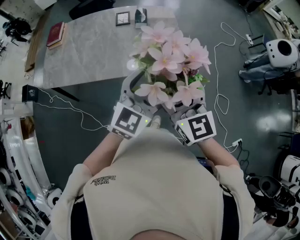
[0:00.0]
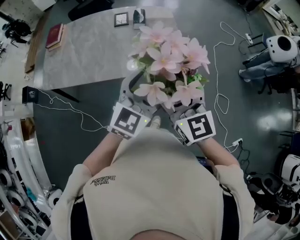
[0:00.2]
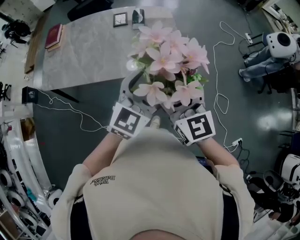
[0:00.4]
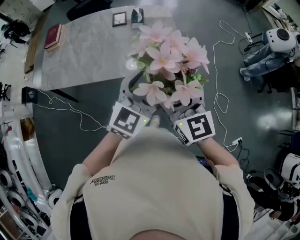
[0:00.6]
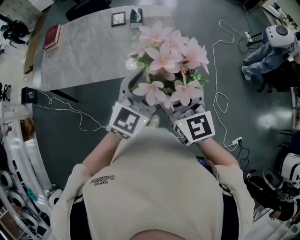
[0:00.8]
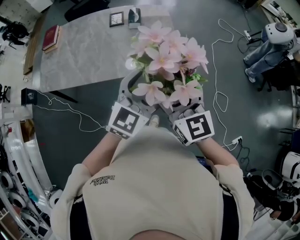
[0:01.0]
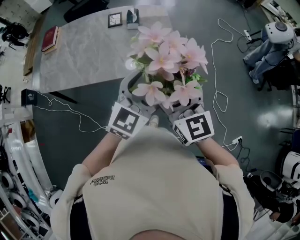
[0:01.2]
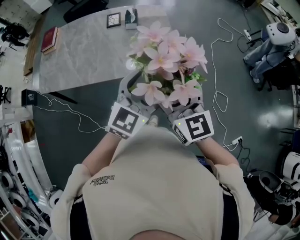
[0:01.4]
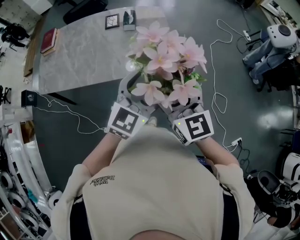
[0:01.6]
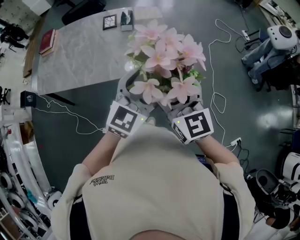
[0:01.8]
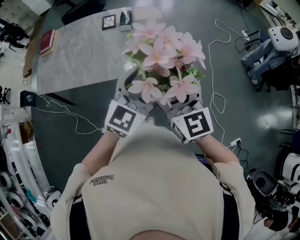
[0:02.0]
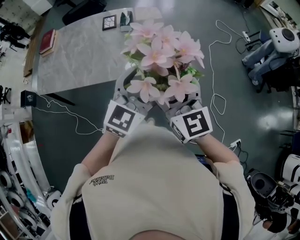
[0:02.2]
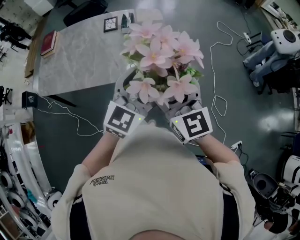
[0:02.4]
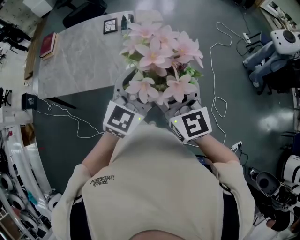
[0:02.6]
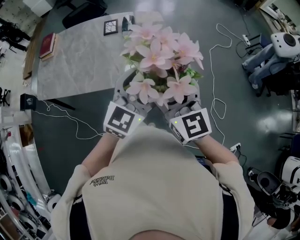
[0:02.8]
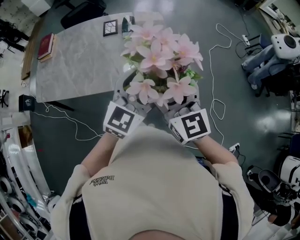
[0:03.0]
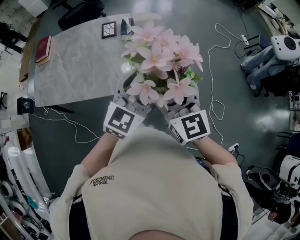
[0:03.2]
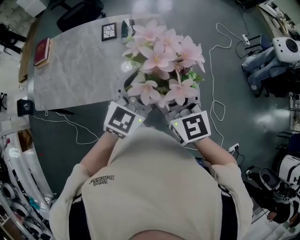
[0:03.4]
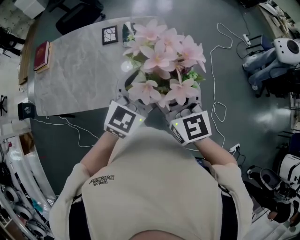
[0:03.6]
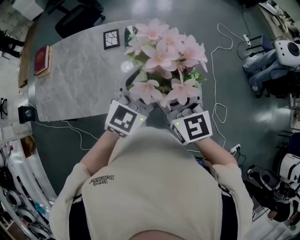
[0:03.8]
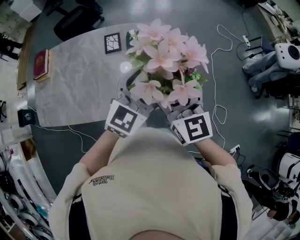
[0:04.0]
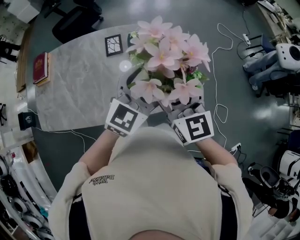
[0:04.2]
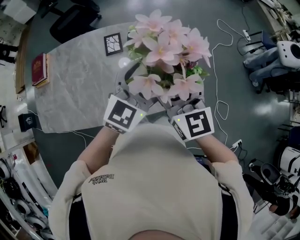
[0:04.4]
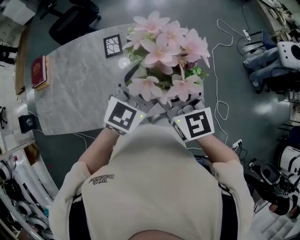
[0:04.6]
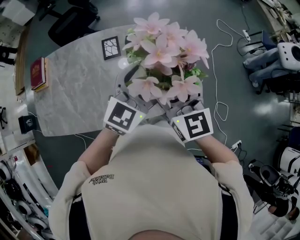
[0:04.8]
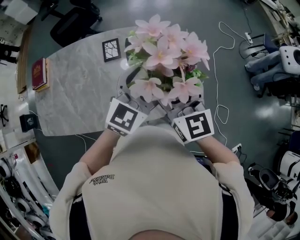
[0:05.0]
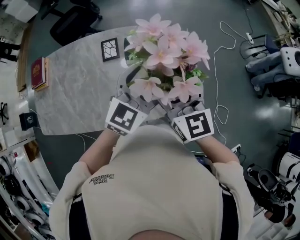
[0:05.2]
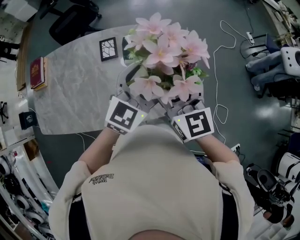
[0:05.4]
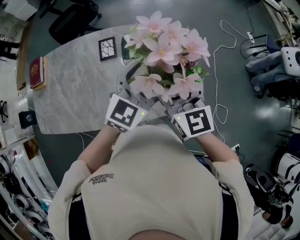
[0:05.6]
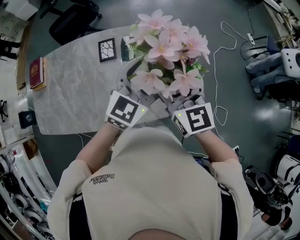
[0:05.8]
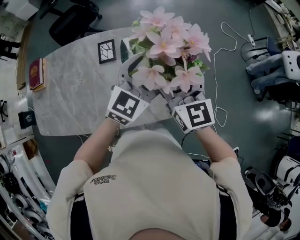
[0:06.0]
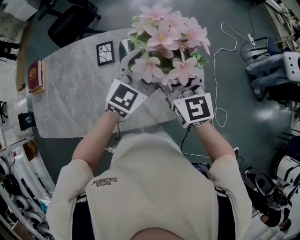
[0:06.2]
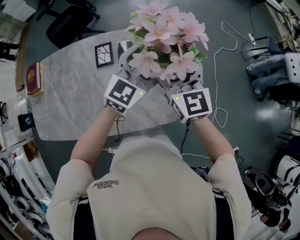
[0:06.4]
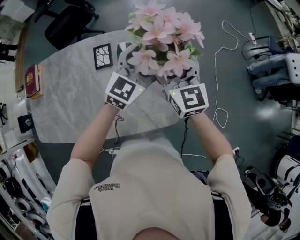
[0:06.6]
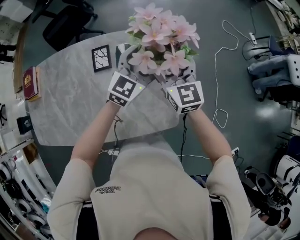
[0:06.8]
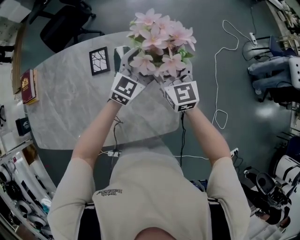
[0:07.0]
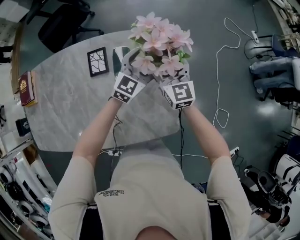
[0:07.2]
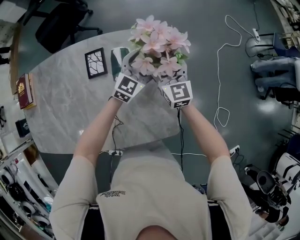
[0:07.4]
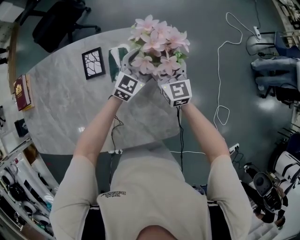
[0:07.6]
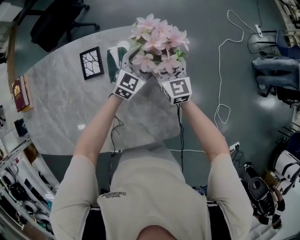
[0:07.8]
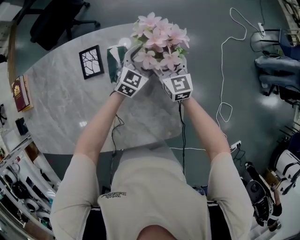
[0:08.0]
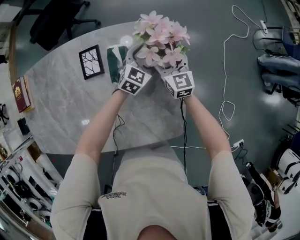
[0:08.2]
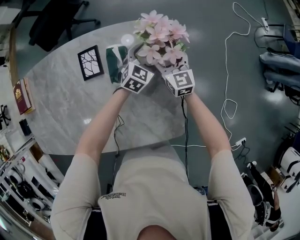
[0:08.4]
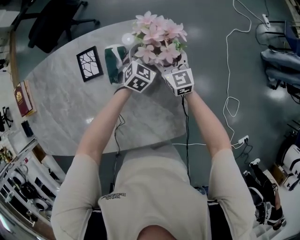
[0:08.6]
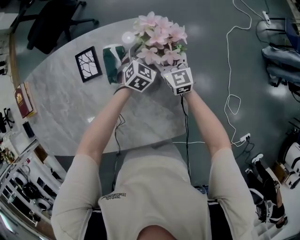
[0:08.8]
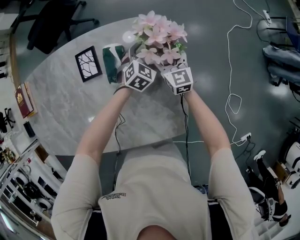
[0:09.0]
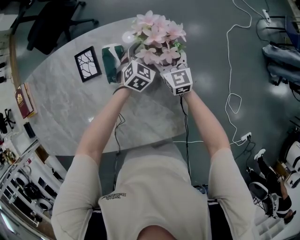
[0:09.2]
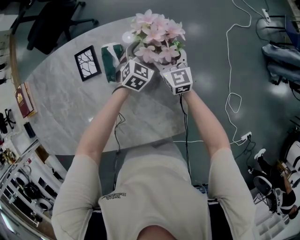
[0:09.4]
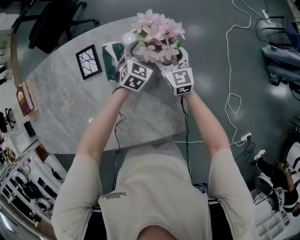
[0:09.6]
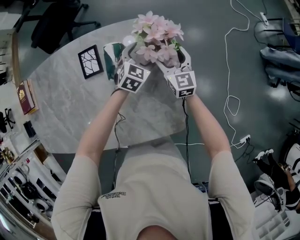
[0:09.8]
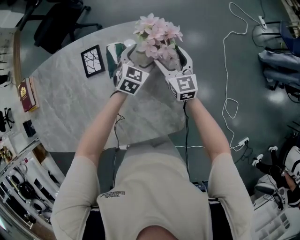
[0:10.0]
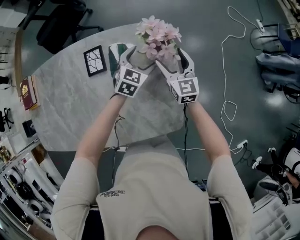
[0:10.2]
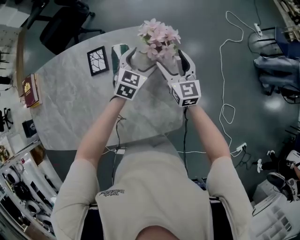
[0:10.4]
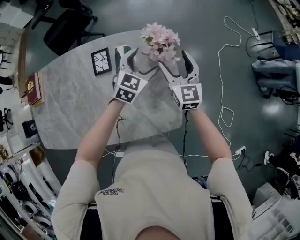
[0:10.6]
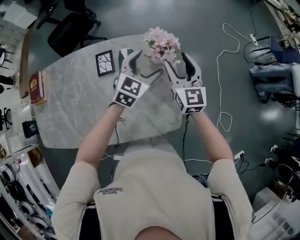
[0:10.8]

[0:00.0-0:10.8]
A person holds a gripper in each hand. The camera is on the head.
0:00.0 to 0:01.6: Both grippers travel together to the right, about 5 cm.
0:01.6 to 0:03.0: Both grippers move forward, some 5 cm.
0:03.0 to 0:04.6: The grippers both shift forward and to the left by about 25 cm.
0:04.6 to 0:06.2: The two grippers go approximately 15 cm forward and to the right.
0:06.2 to 0:07.8: Both grippers travel together downward and forward, about 30 cm.
0:07.8 to 0:09.2: The grippers both shift downward by approximately 10 cm. The left gripper swivels about 30 degrees.
0:09.2 to 0:10.8: Both grippers move upward and backward, approximately 25 cm. The left gripper turns by about 20 degrees.

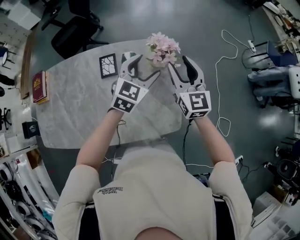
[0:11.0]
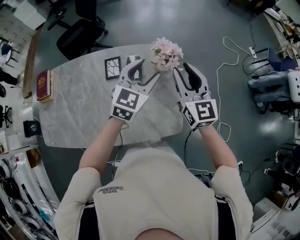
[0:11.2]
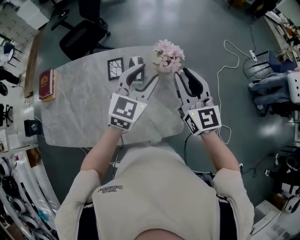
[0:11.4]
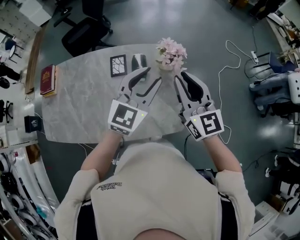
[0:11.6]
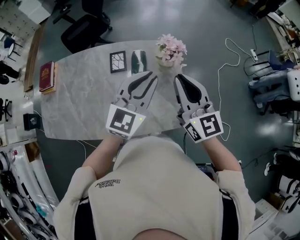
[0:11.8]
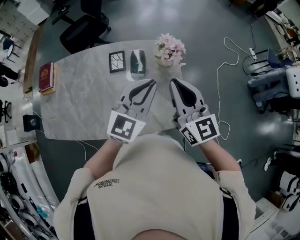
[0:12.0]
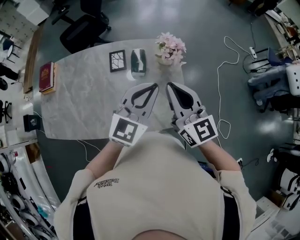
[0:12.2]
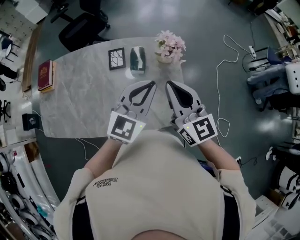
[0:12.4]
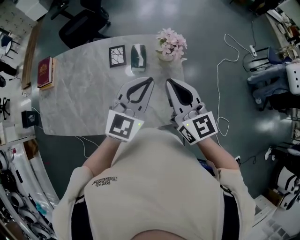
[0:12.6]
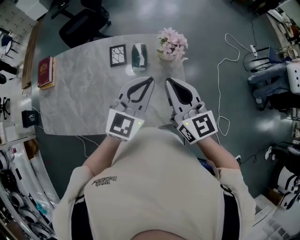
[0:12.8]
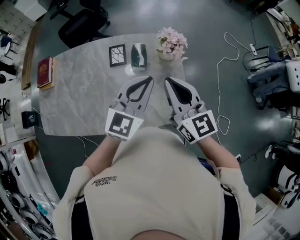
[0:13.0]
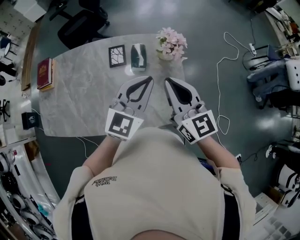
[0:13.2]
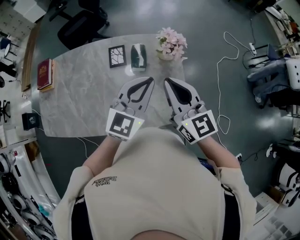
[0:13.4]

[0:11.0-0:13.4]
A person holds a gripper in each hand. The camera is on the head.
0:11.0 to 0:12.2: The left gripper goes approximately 20 cm backward and upward, and closes, while the right gripper travels backward, upward and to the left by some 20 cm, and closes up.
0:12.2 to 0:13.4: There are only small adjustments of the grippers.

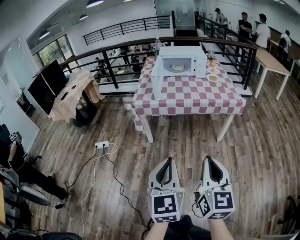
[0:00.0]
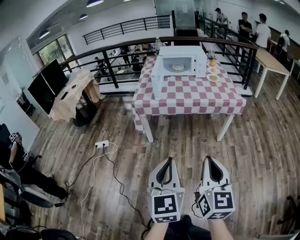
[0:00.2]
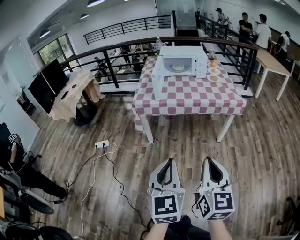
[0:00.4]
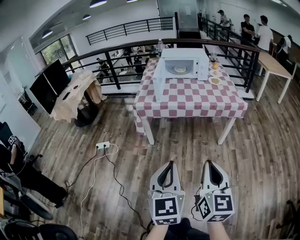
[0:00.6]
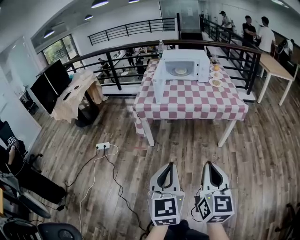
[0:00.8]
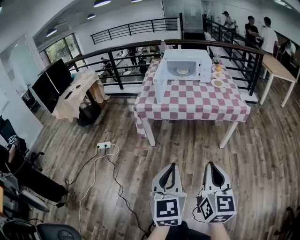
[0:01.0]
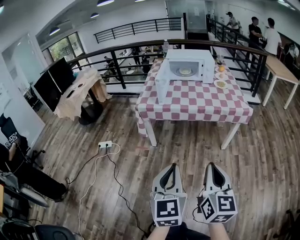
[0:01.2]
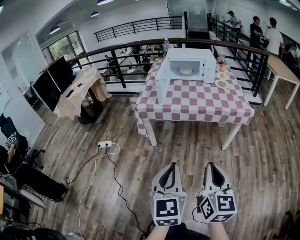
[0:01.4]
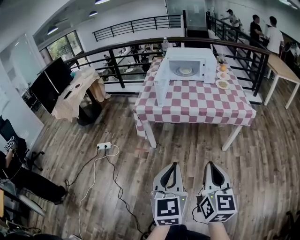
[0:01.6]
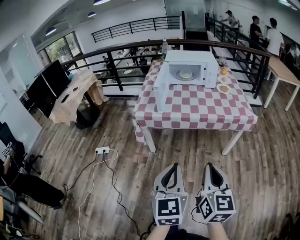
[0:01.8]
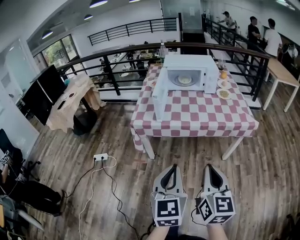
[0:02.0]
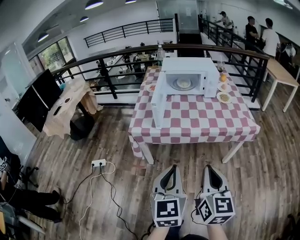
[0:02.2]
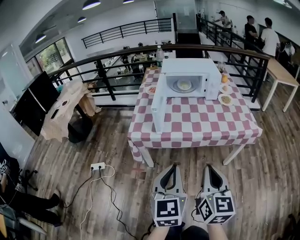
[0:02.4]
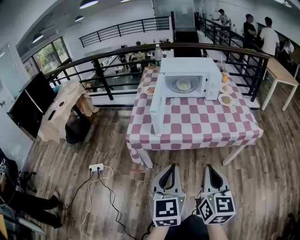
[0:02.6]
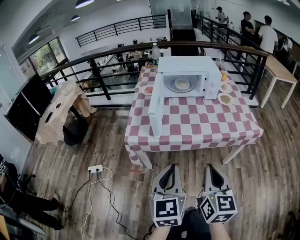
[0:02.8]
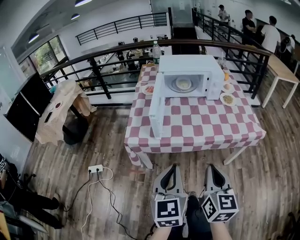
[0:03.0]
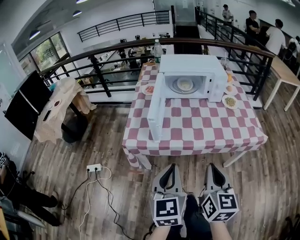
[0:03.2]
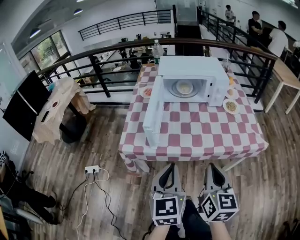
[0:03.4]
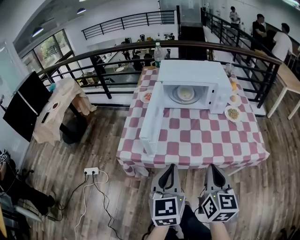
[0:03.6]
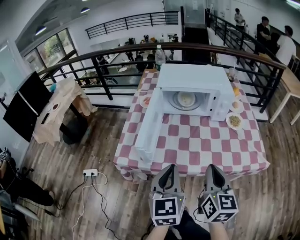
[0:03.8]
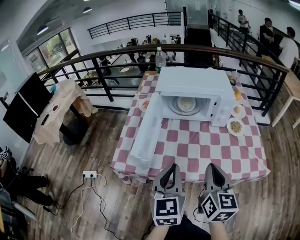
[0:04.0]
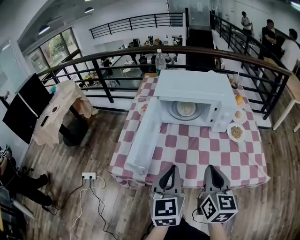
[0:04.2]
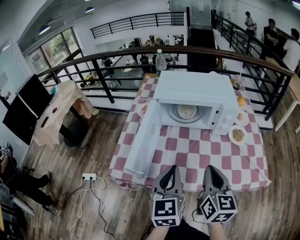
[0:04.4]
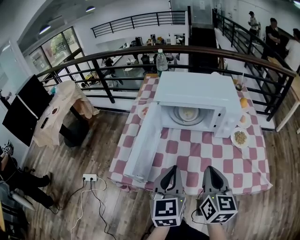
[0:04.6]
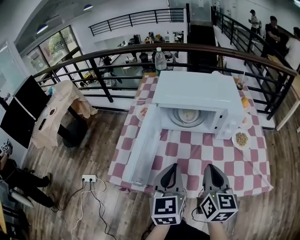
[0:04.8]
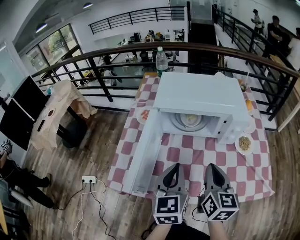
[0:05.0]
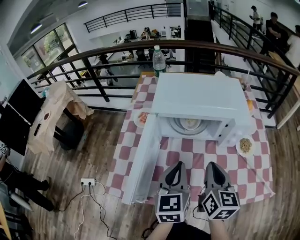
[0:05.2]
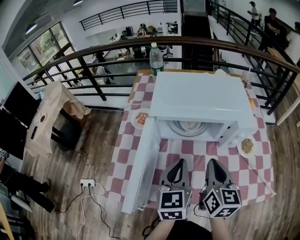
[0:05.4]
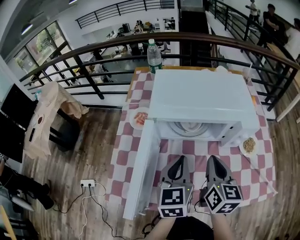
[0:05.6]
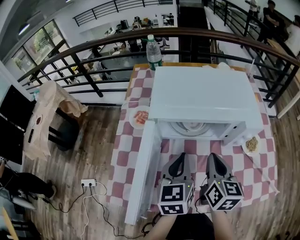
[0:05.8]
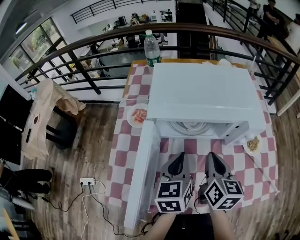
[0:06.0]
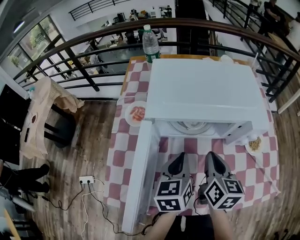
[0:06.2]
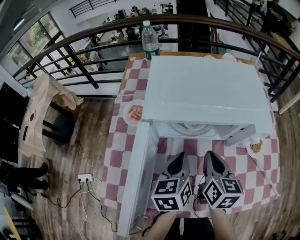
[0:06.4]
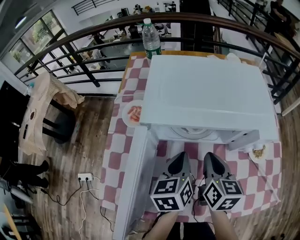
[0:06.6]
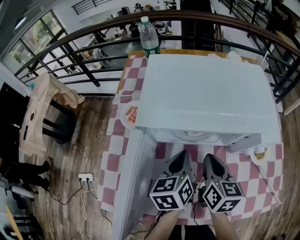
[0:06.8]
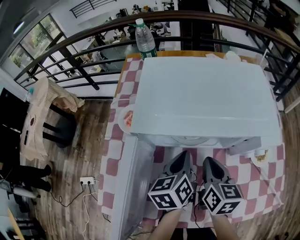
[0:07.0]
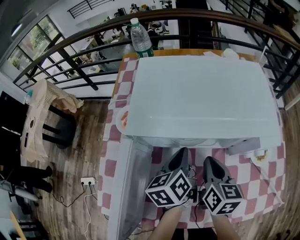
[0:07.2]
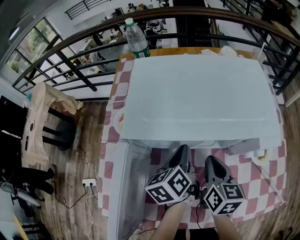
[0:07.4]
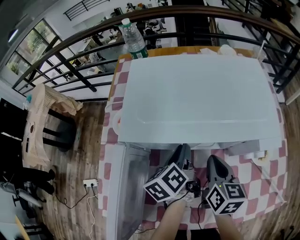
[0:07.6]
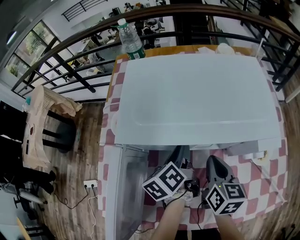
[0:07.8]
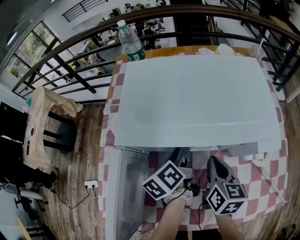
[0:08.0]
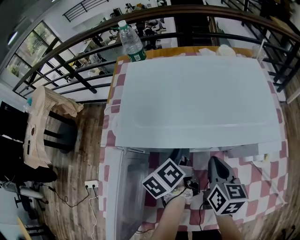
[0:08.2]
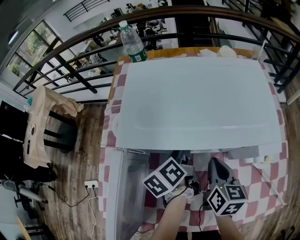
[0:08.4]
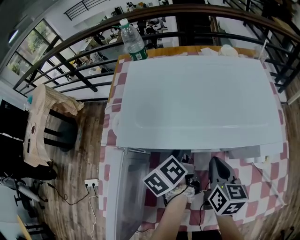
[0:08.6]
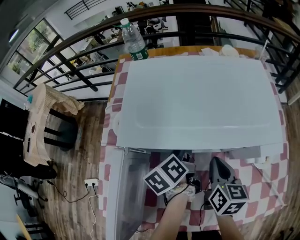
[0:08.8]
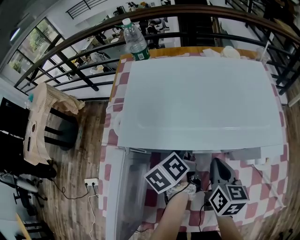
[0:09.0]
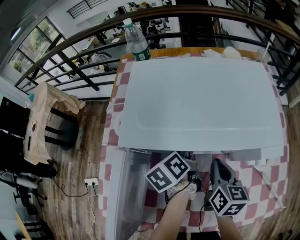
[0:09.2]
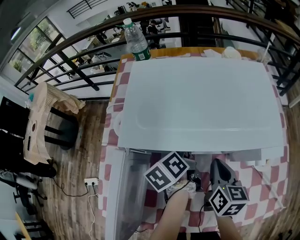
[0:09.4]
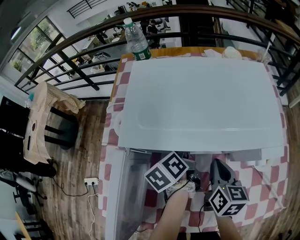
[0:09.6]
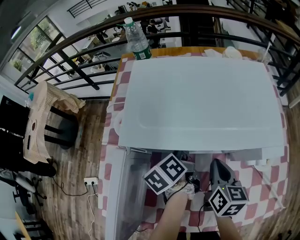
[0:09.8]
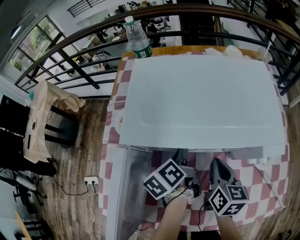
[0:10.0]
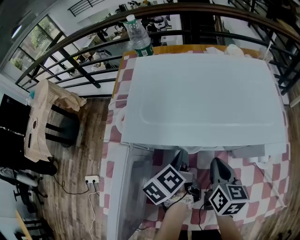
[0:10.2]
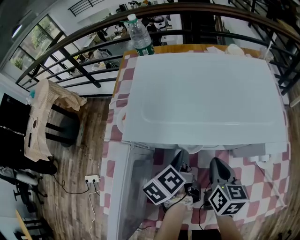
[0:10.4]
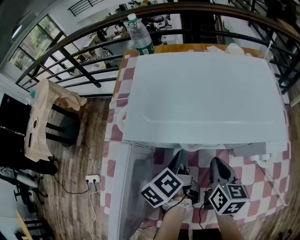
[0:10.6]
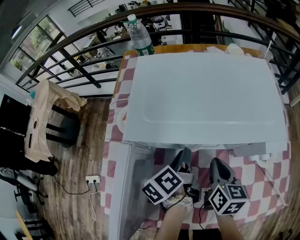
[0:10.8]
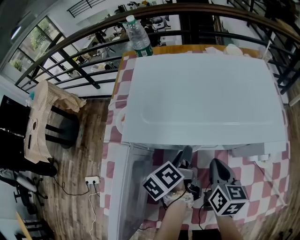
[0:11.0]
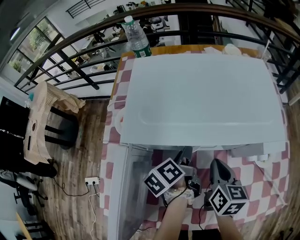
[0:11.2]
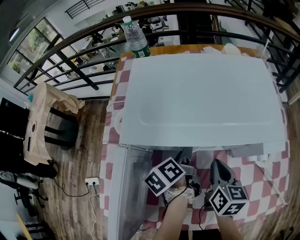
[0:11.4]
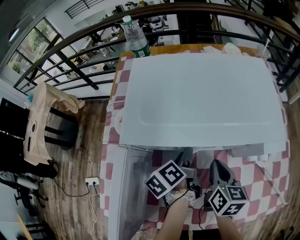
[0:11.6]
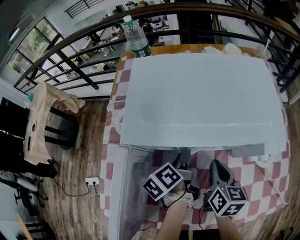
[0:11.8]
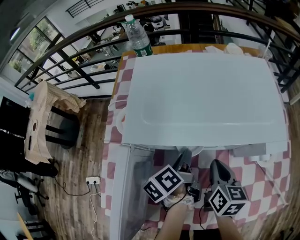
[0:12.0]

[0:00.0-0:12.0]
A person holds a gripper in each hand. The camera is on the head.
0:00.0 to 0:01.6: The two grippers go some 10 cm forward.
0:01.6 to 0:03.0: The grippers both shift forward by about 30 cm.
0:03.0 to 0:04.4: Both grippers travel together forward, roughly 30 cm.
0:04.4 to 0:06.0: The grippers both shift forward by approximately 20 cm.
0:06.0 to 0:07.6: The right gripper moves downward and forward, about 10 cm, while the left gripper moves forward and downward, about 15 cm, rotates some 40 degrees, and opens.
0:07.6 to 0:09.0: The grippers make only small movements.
0:09.0 to 0:10.4: The left gripper ends up about 5 cm from where it was, and closes up.
0:10.4 to 0:12.0: The left gripper opens and closes again.
